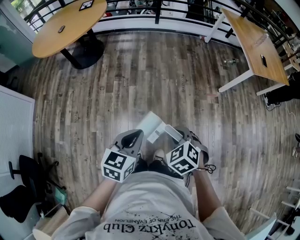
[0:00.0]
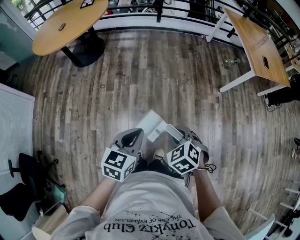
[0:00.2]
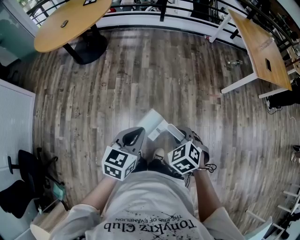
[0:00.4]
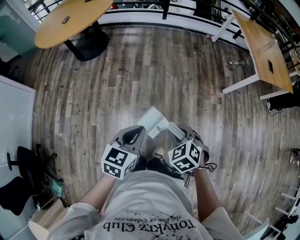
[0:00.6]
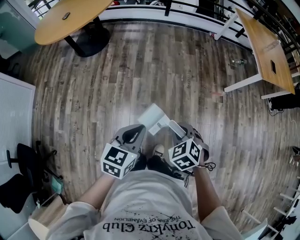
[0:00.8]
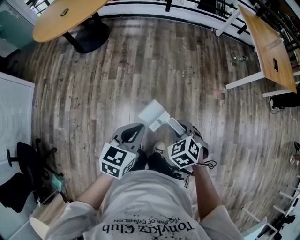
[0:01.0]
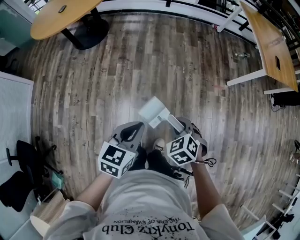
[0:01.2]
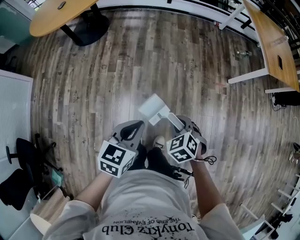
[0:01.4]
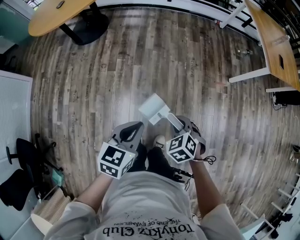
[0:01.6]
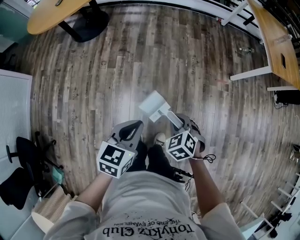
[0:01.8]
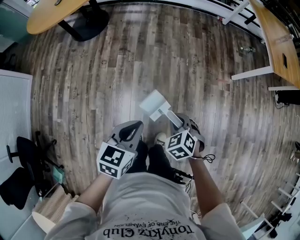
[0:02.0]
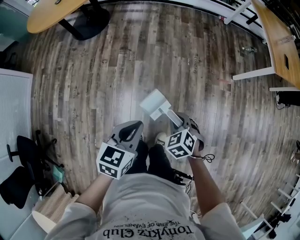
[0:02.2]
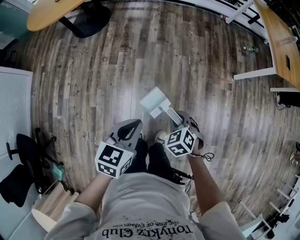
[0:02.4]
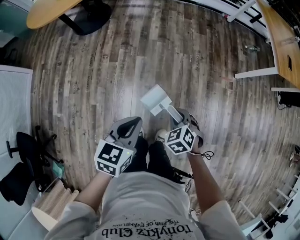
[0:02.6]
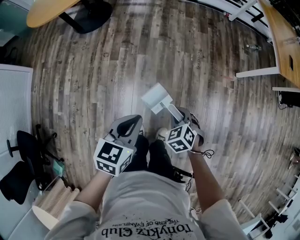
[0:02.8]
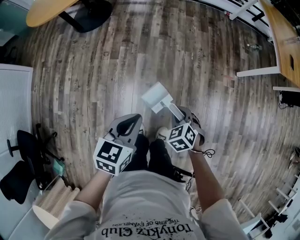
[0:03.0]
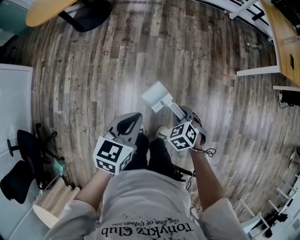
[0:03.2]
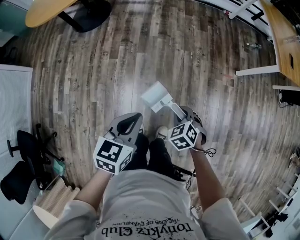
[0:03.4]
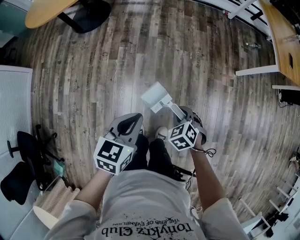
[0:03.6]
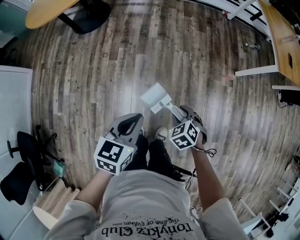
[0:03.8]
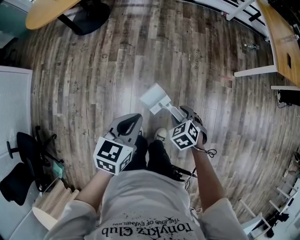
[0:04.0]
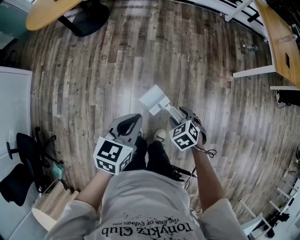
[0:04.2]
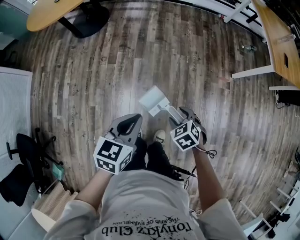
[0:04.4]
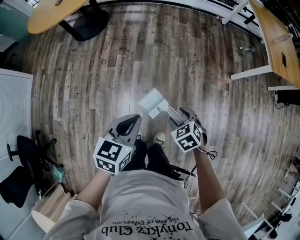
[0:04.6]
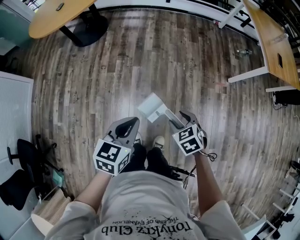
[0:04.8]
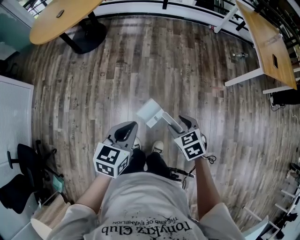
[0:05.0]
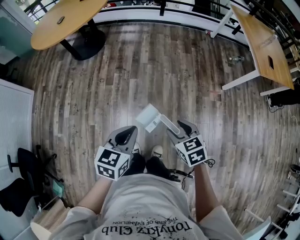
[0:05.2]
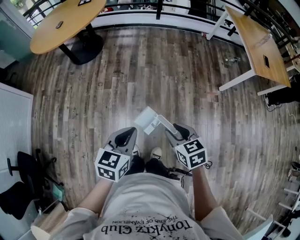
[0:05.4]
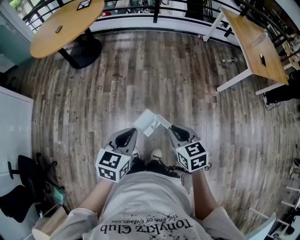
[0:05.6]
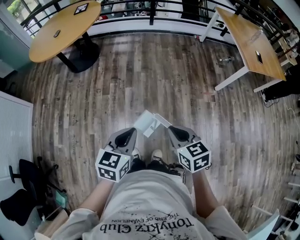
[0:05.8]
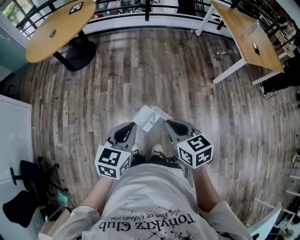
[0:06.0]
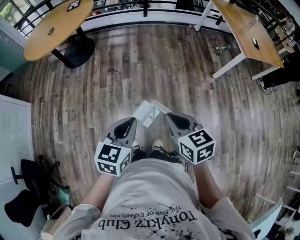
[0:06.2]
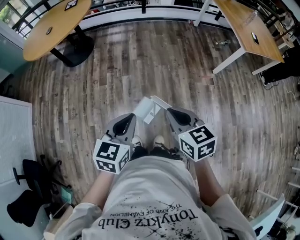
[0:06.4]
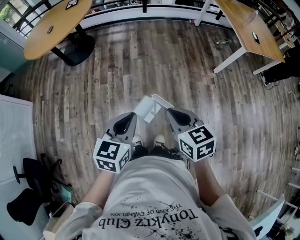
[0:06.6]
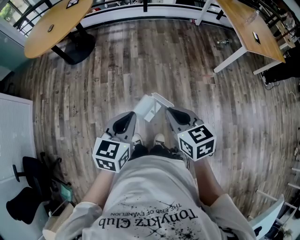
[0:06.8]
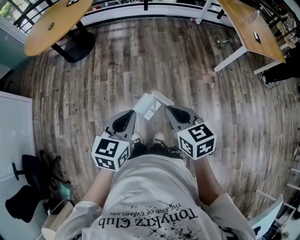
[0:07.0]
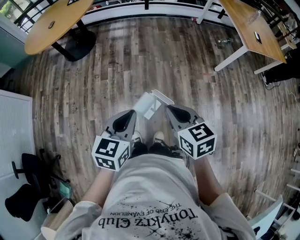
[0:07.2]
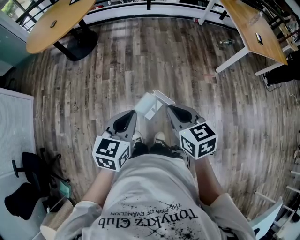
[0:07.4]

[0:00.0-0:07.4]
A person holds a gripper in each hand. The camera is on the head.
0:00.0 to 0:01.4: The right gripper moves downward and forward, about 10 cm, while the left gripper moves roughly 5 cm.
0:01.4 to 0:03.0: The right gripper moves downward, approximately 10 cm.
0:03.0 to 0:04.4: The right gripper opens up.
0:04.4 to 0:06.0: The left gripper heads upward and backward, covering about 10 cm, while the right gripper travels upward by approximately 25 cm, tilts its fingers some 30 degrees upward, and closes up.
0:06.0 to 0:07.4: The grippers make only small movements.

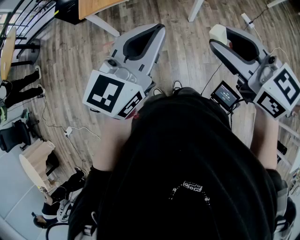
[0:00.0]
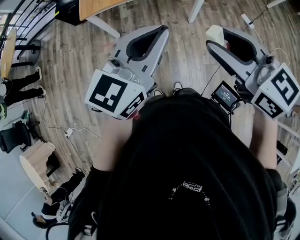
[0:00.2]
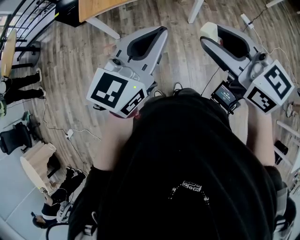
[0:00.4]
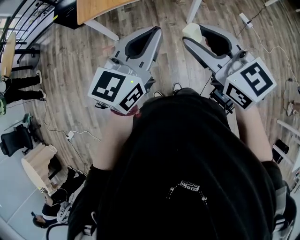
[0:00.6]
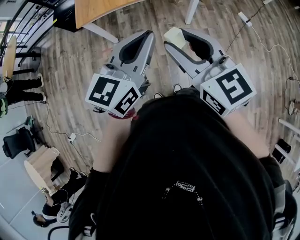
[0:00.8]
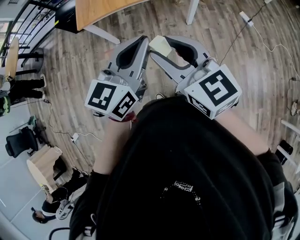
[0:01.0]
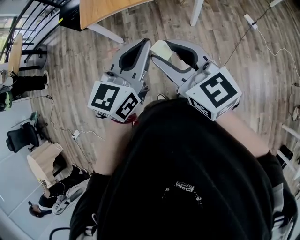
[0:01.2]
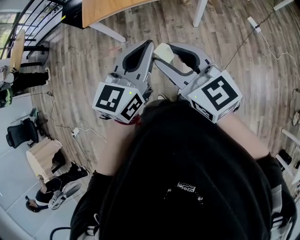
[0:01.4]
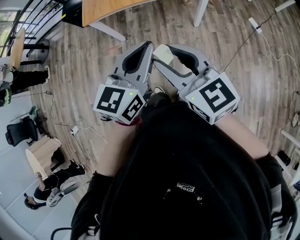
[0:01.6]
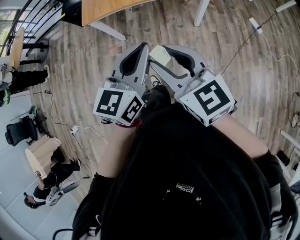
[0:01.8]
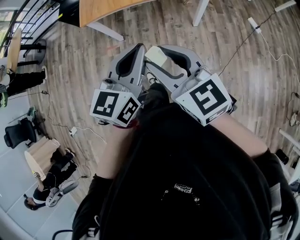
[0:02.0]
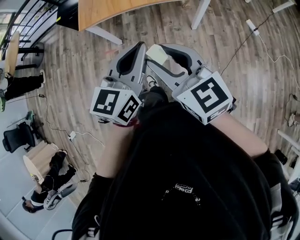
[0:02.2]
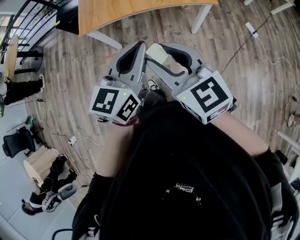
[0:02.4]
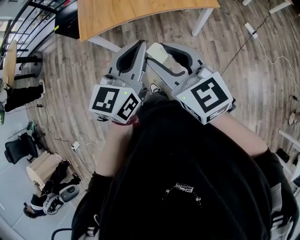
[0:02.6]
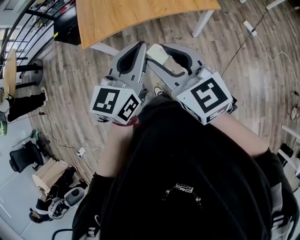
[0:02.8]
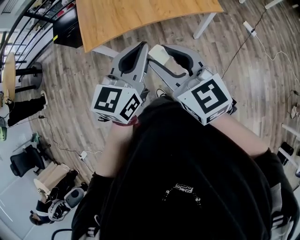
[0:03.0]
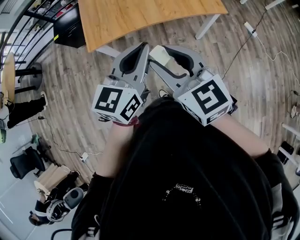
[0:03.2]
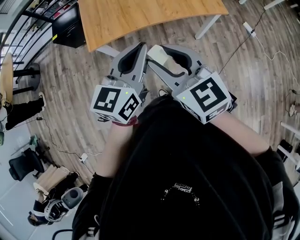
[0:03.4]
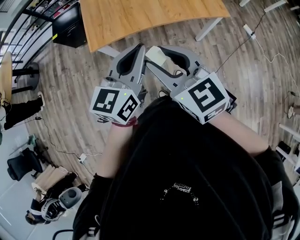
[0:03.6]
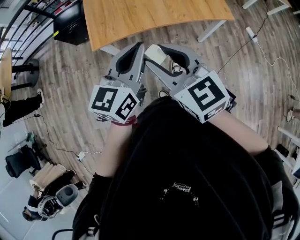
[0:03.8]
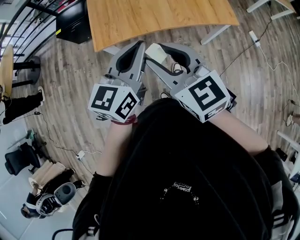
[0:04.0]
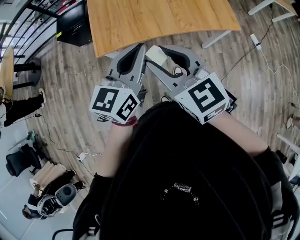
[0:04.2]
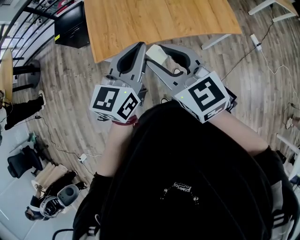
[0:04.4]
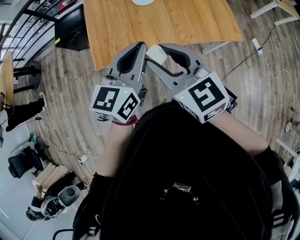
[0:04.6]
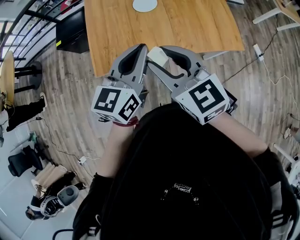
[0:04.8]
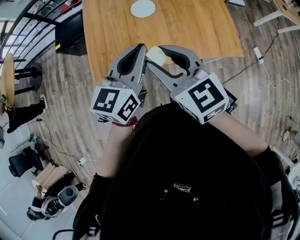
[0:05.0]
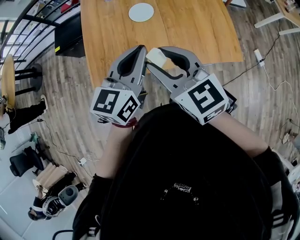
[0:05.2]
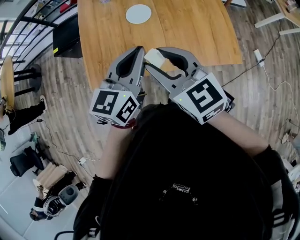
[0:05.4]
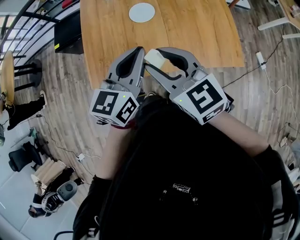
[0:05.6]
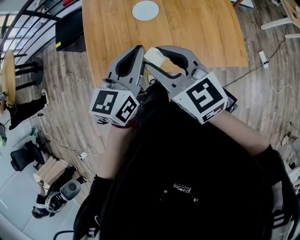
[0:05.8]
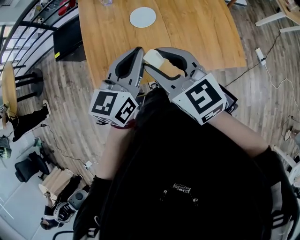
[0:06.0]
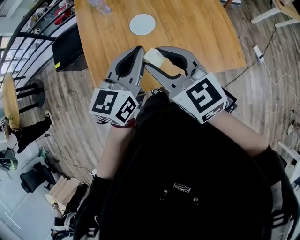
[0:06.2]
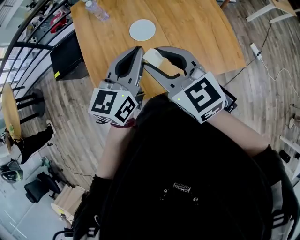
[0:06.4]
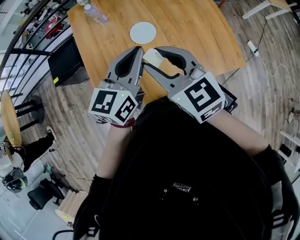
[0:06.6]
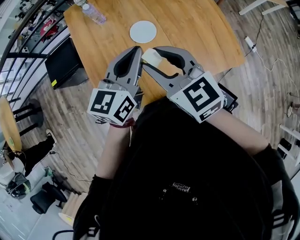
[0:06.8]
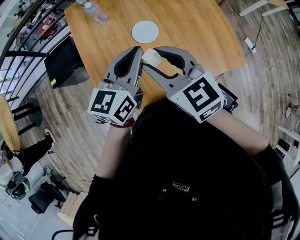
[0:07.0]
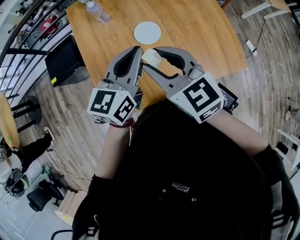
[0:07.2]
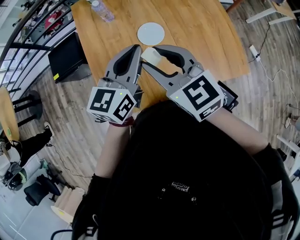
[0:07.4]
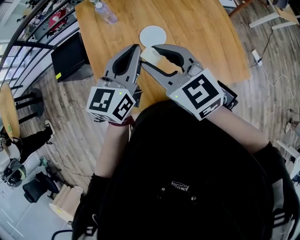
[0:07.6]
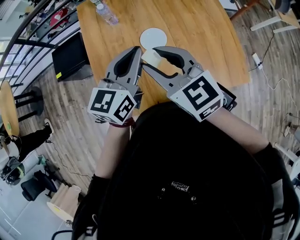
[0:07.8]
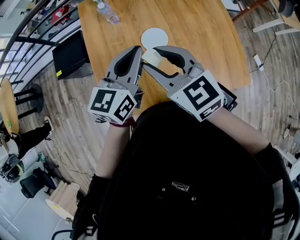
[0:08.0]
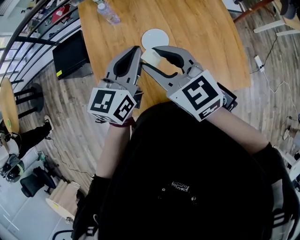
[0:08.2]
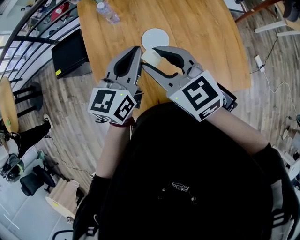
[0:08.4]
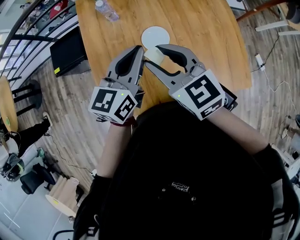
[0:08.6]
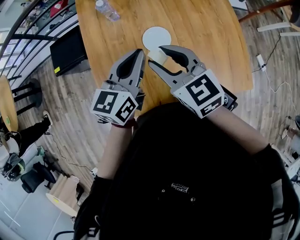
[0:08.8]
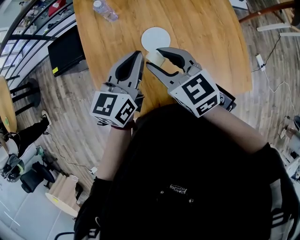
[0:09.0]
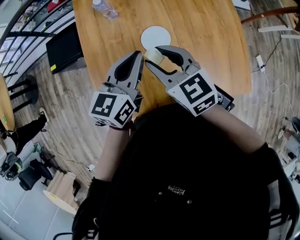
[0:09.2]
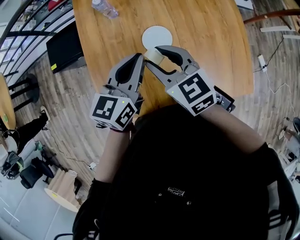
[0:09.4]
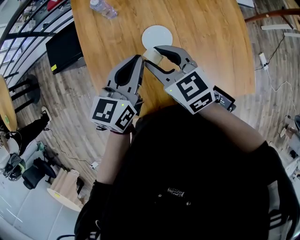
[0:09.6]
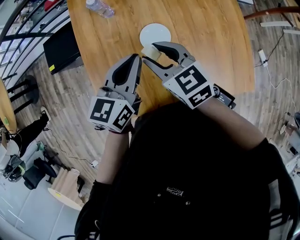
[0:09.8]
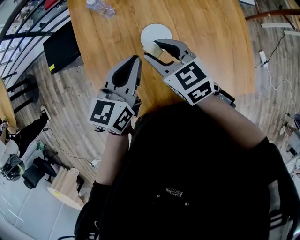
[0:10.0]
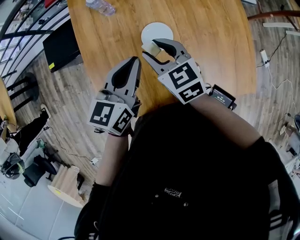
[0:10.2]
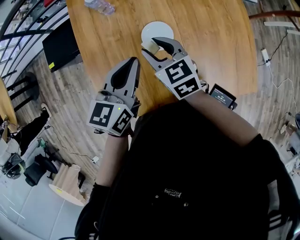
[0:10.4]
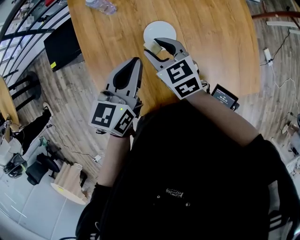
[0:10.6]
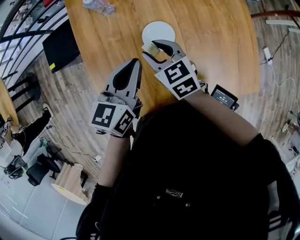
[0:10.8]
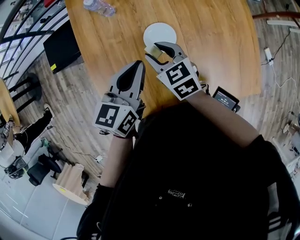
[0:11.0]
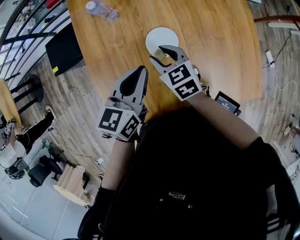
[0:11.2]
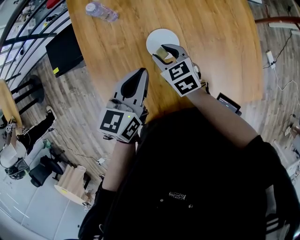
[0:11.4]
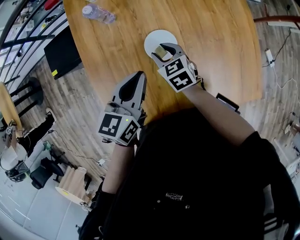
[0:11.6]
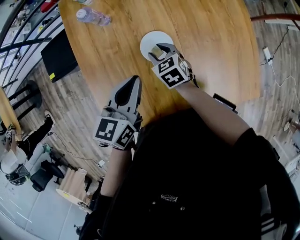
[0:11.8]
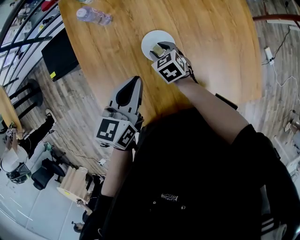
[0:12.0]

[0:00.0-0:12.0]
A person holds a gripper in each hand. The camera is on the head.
0:00.0 to 0:01.6: The left gripper is displaced downward by roughly 5 cm. Meanwhile the right gripper heads downward and to the left, covering about 10 cm.
0:01.6 to 0:03.0: The grippers both shift forward and to the left by roughly 20 cm.
0:03.0 to 0:04.4: Both grippers travel together forward and to the left, about 15 cm.
0:04.4 to 0:06.0: Both grippers travel together forward, roughly 20 cm.
0:06.0 to 0:07.6: Both grippers move forward and to the left, about 15 cm.
0:07.6 to 0:09.0: Both grippers travel together downward and forward, approximately 10 cm.
0:09.0 to 0:10.4: The right gripper is displaced downward and forward by approximately 10 cm.
0:10.4 to 0:12.0: The right gripper travels downward by roughly 15 cm.

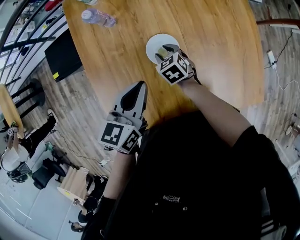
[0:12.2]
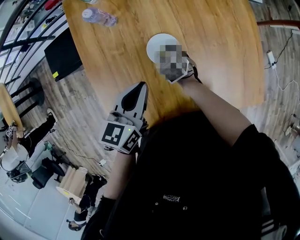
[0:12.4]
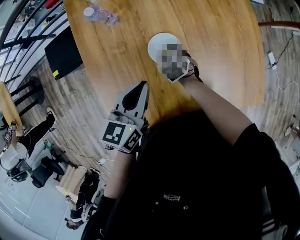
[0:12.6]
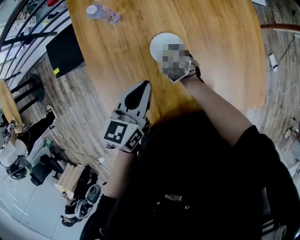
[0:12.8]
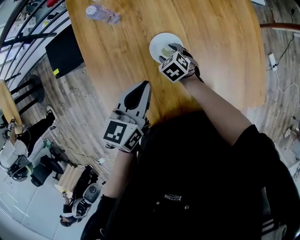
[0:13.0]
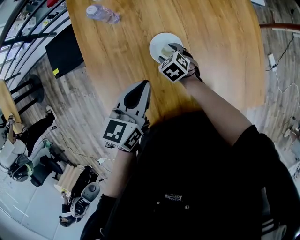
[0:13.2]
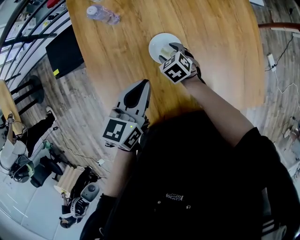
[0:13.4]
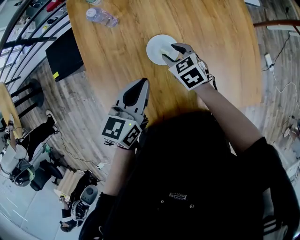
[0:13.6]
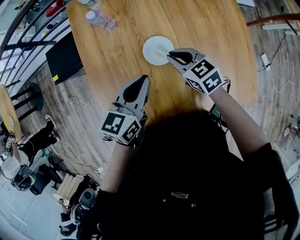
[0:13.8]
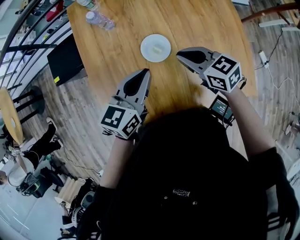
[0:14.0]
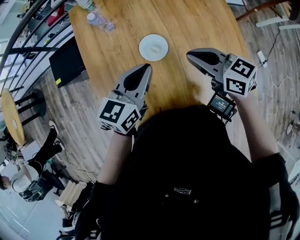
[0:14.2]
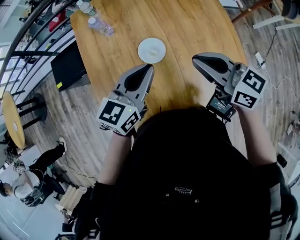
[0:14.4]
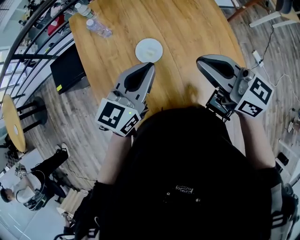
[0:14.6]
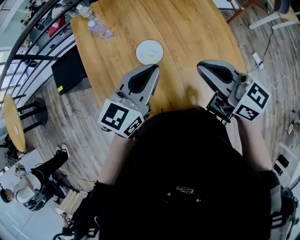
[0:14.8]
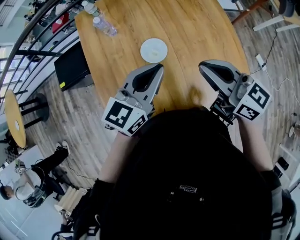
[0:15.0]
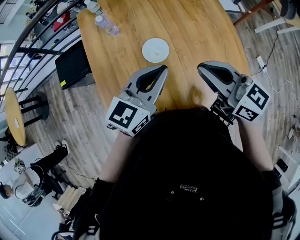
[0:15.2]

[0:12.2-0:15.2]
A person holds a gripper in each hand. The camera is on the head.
0:12.2 to 0:13.8: The right gripper shifts some 15 cm upward, and closes its fingers.
0:13.8 to 0:15.2: The right gripper heads upward and backward, covering roughly 25 cm, and changes its angle by some 30 degrees. Meanwhile the left gripper moves upward, to the right and backward, about 15 cm, and changes its angle by approximately 20 degrees.

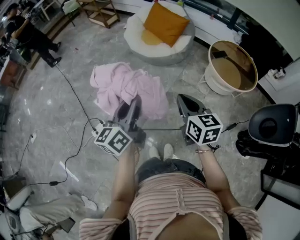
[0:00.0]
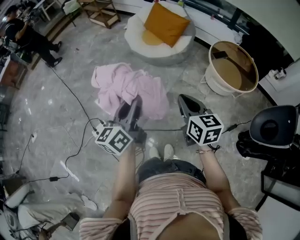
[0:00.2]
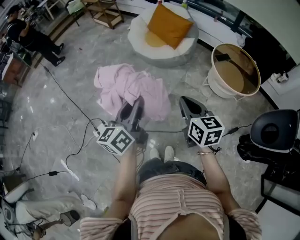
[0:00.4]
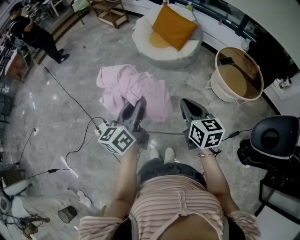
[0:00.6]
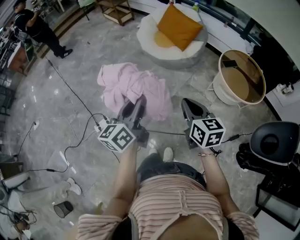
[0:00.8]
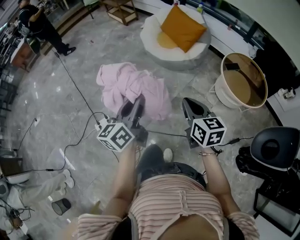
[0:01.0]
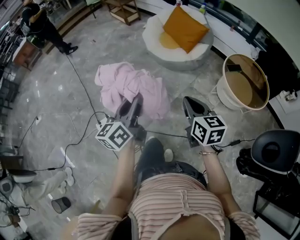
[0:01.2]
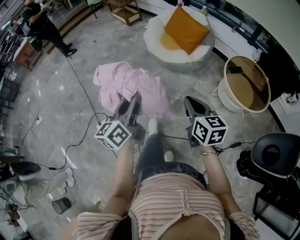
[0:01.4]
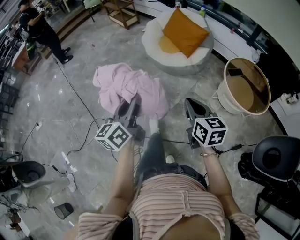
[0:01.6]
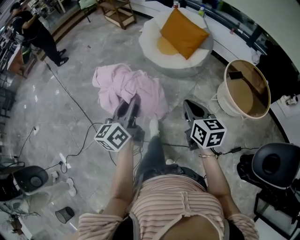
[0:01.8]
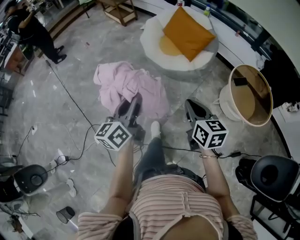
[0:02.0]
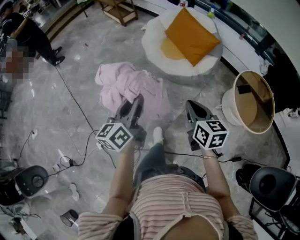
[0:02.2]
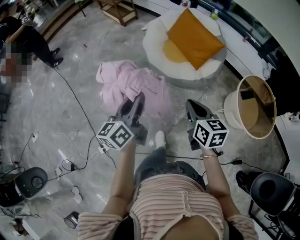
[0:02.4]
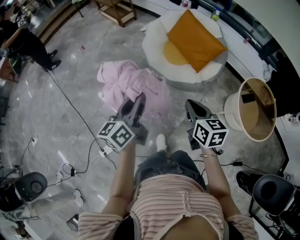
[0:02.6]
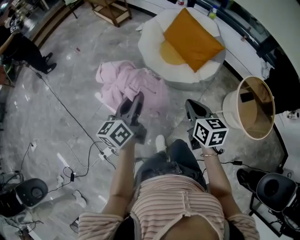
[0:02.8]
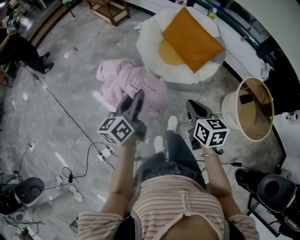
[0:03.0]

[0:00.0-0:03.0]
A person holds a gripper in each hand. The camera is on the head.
0:00.0 to 0:01.6: Both grippers move forward, about 10 cm.
0:01.6 to 0:03.0: The two grippers go some 40 cm forward.
